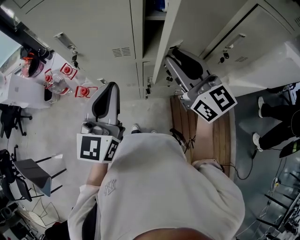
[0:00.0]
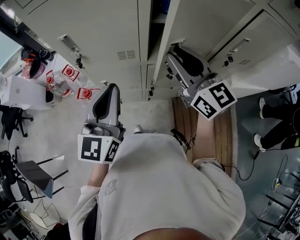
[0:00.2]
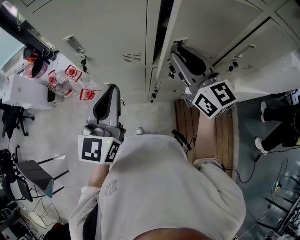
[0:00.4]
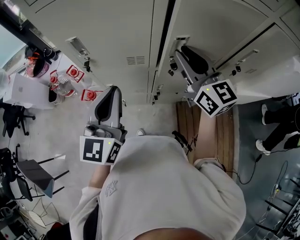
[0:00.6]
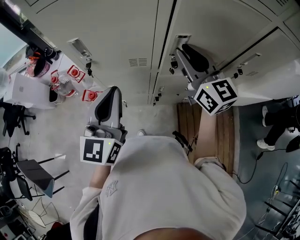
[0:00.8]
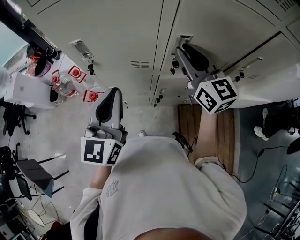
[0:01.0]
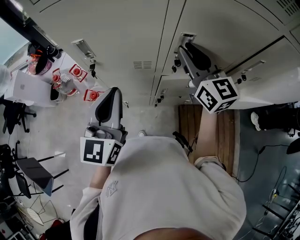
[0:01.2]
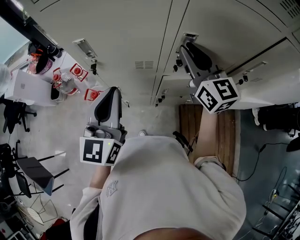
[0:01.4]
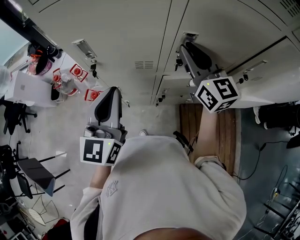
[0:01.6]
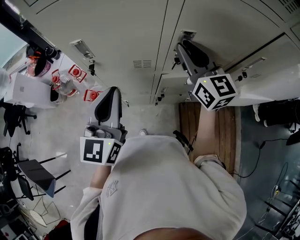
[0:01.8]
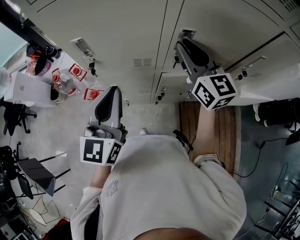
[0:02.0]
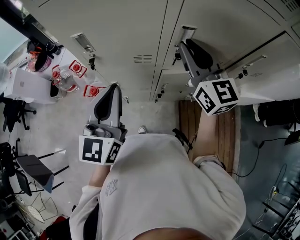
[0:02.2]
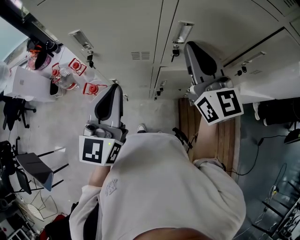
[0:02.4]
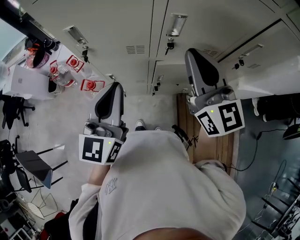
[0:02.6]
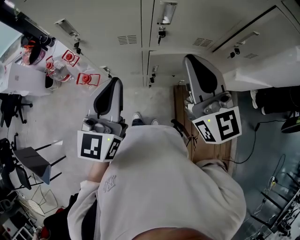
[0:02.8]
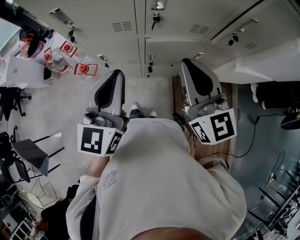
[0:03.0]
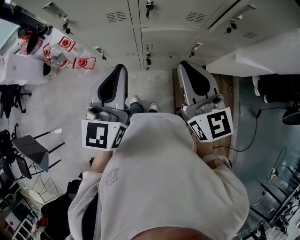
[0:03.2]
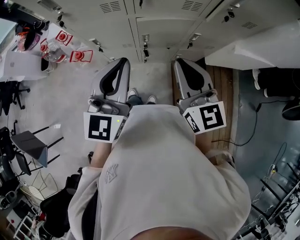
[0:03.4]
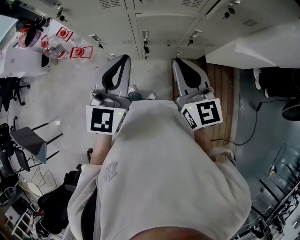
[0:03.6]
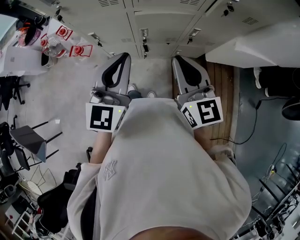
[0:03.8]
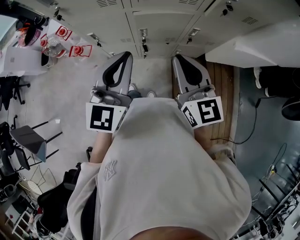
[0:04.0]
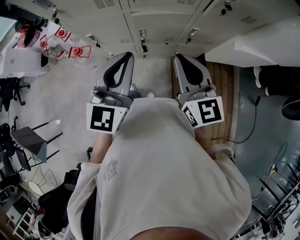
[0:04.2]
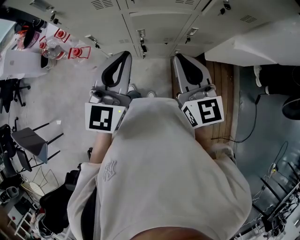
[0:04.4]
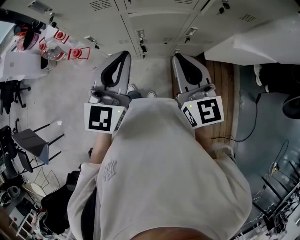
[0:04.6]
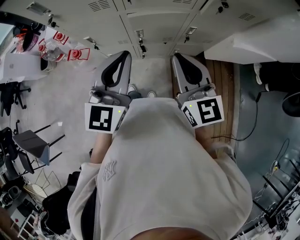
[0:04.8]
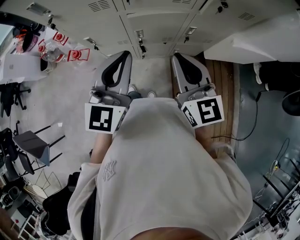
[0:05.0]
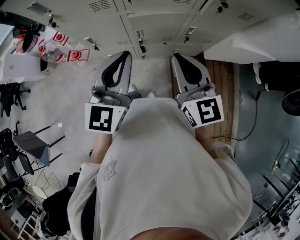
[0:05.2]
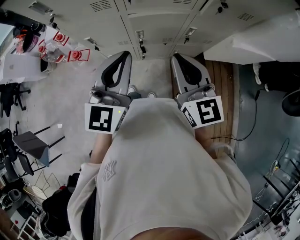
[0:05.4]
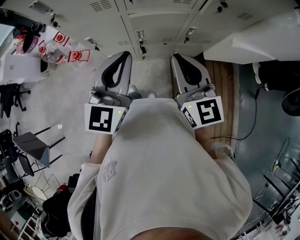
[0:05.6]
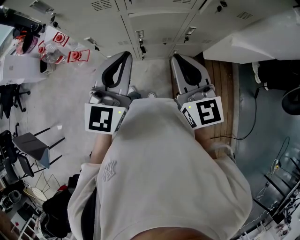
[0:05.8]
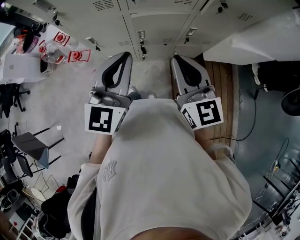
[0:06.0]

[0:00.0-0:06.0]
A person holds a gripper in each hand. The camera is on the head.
0:00.0 to 0:01.6: The left gripper is displaced to the left and forward by roughly 10 cm. Meanwhile the right gripper is displaced forward by about 10 cm.
0:01.6 to 0:03.0: The right gripper travels backward by about 20 cm. Meanwhile the left gripper travels backward and to the right by roughly 10 cm.
0:03.0 to 0:04.4: The right gripper travels downward, to the right and backward by roughly 15 cm. Meanwhile the left gripper moves to the right and downward, about 10 cm.
0:04.4 to 0:06.0: The grippers stay close to where they were, moving slightly.

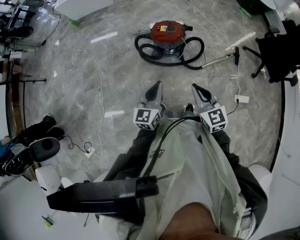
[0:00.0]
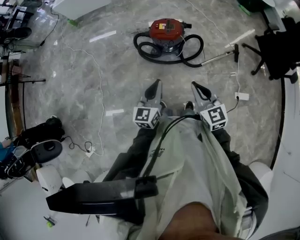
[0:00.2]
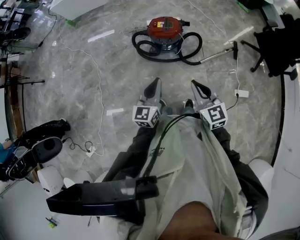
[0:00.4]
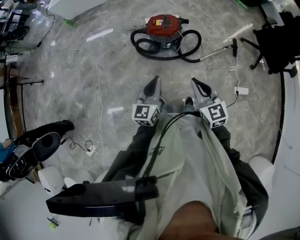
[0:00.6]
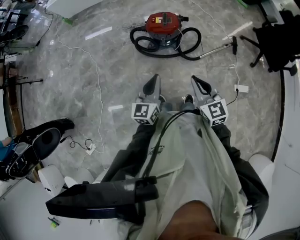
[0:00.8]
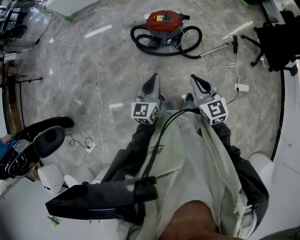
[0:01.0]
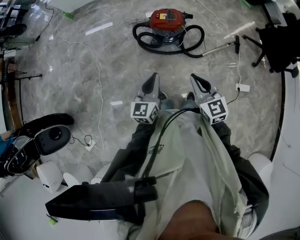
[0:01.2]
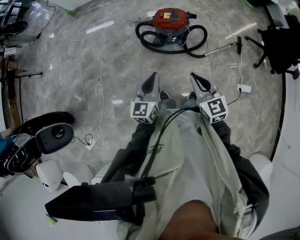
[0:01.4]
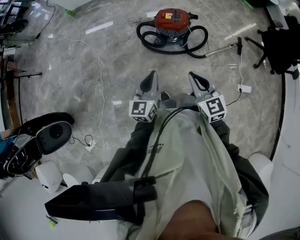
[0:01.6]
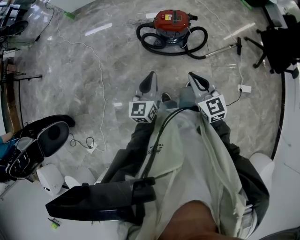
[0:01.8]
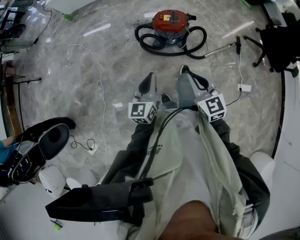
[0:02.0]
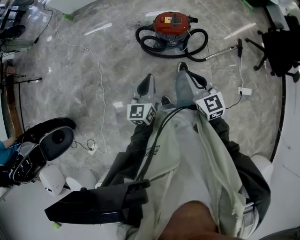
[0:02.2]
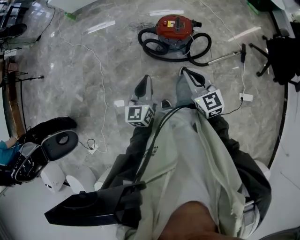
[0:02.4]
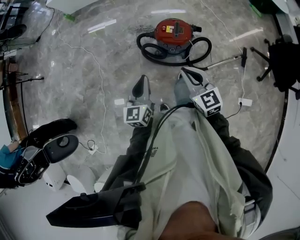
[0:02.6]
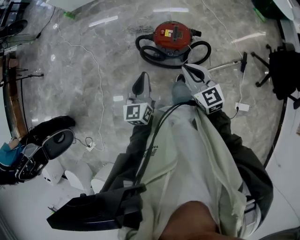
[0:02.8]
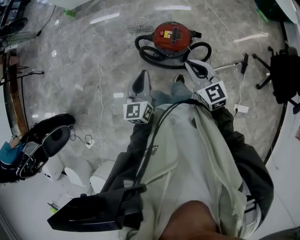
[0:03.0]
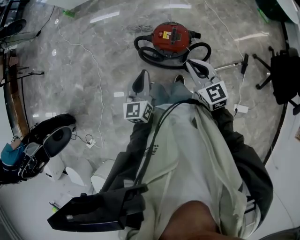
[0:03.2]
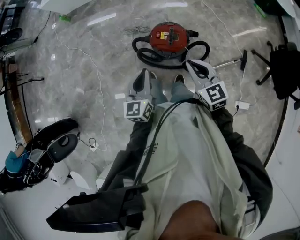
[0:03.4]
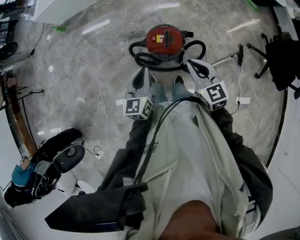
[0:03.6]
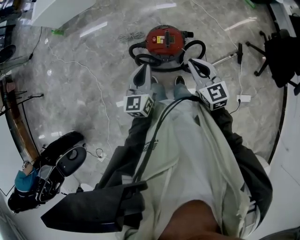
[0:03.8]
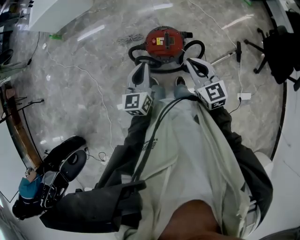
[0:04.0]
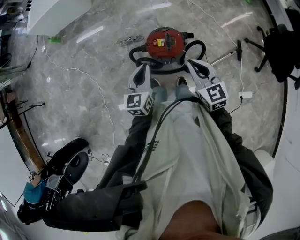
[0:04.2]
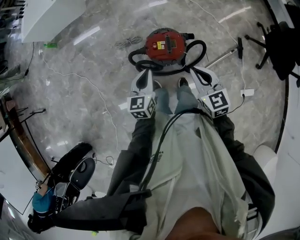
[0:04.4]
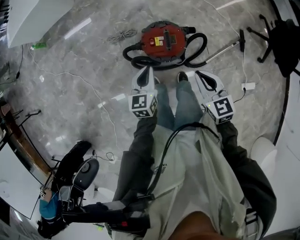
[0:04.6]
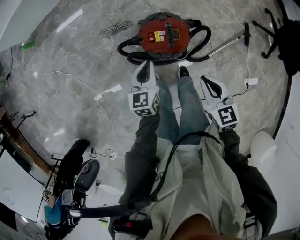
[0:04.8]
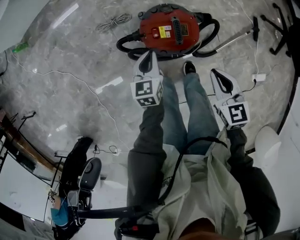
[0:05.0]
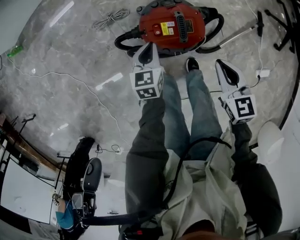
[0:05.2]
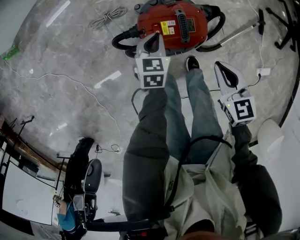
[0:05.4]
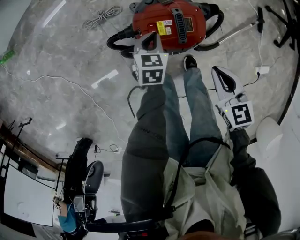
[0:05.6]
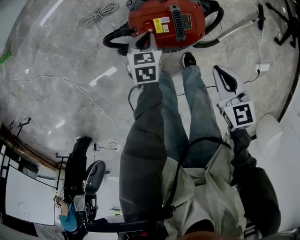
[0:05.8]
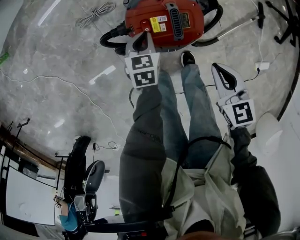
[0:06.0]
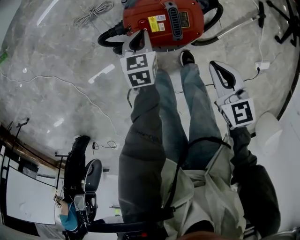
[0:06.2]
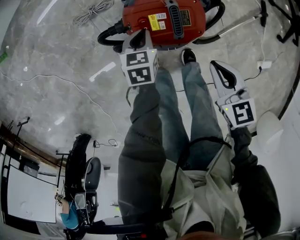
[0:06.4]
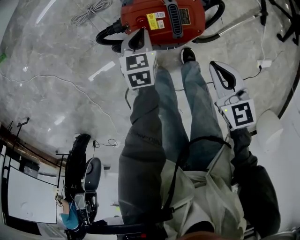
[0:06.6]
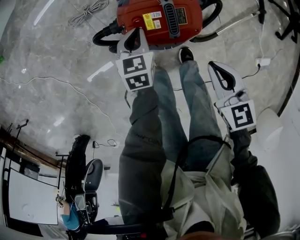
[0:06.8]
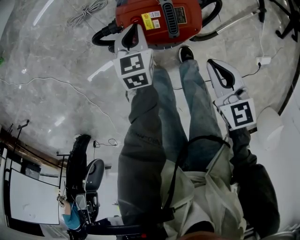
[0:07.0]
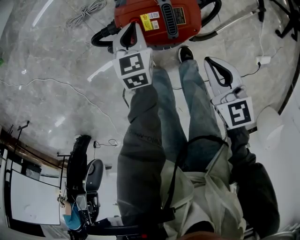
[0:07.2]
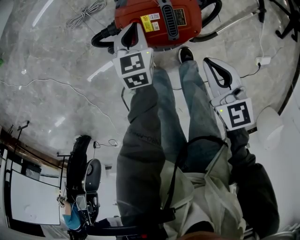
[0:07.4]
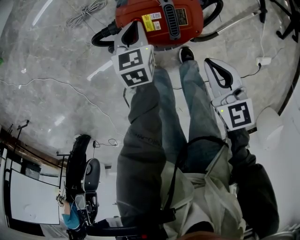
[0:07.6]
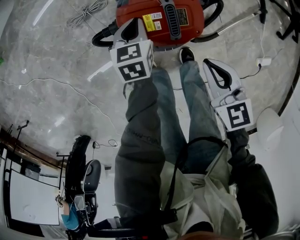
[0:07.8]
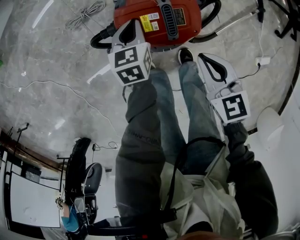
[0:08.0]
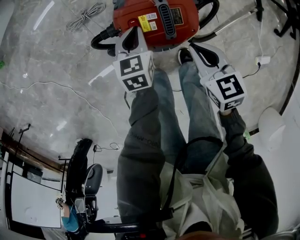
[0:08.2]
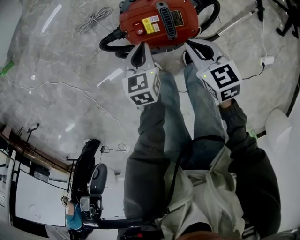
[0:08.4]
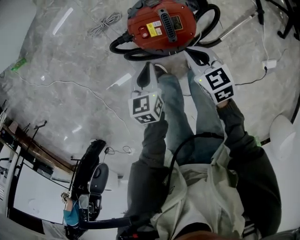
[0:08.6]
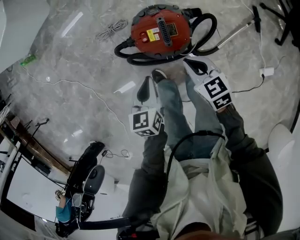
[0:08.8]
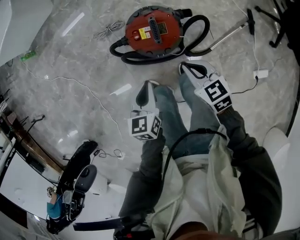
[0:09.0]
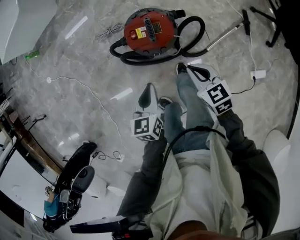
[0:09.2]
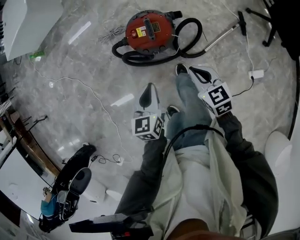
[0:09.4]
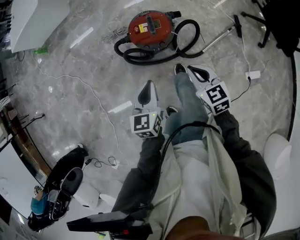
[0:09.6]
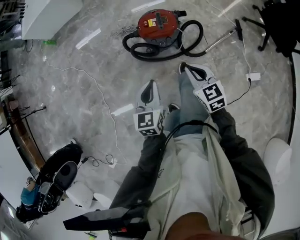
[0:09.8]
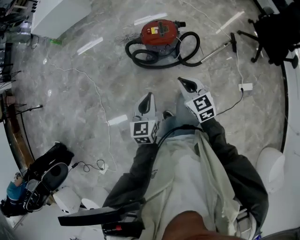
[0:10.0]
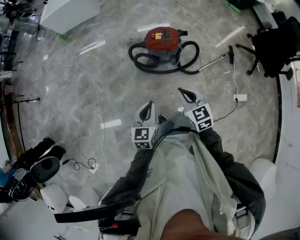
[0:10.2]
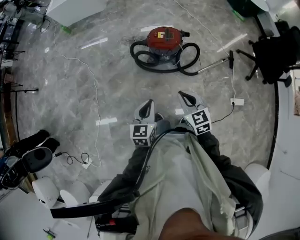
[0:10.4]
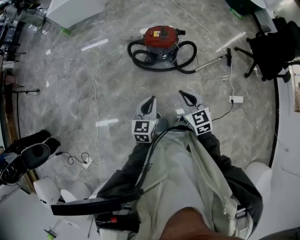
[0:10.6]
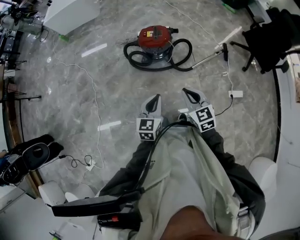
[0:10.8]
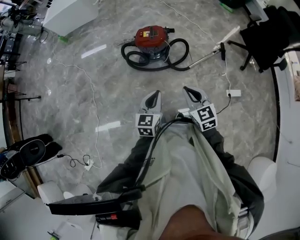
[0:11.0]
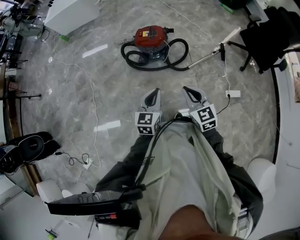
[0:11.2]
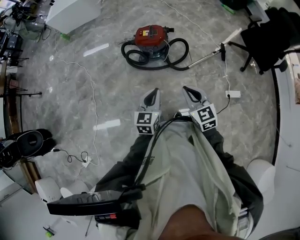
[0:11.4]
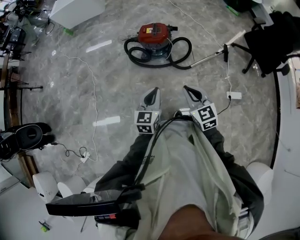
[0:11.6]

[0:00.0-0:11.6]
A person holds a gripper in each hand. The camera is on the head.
0:00.0 to 0:01.4: Both grippers move to the left, approximately 5 cm.
0:01.4 to 0:02.8: The grippers both shift forward by approximately 25 cm.
0:02.8 to 0:04.4: The left gripper goes roughly 20 cm forward and downward, and rotates roughly 20 degrees; the right gripper shifts approximately 10 cm forward and to the right, and rotates approximately 20 degrees.
0:04.4 to 0:05.8: Both grippers move downward, approximately 35 cm. The right gripper turns by about 20 degrees, while the left gripper changes its angle by about 30 degrees.
0:05.8 to 0:07.2: The grippers make only small movements.
0:07.2 to 0:08.8: The left gripper shifts approximately 25 cm upward and backward.
0:08.8 to 0:10.2: The two grippers go about 40 cm backward and upward. The right gripper swivels about 20 degrees.
0:10.2 to 0:11.6: The two grippers go approximately 20 cm to the right and backward.

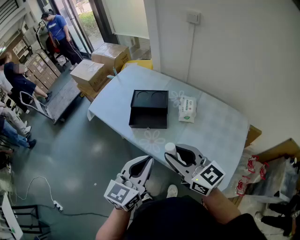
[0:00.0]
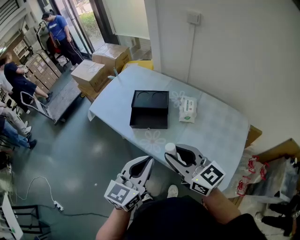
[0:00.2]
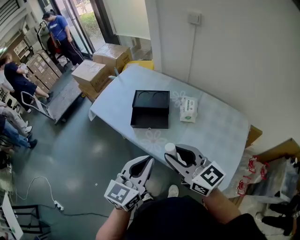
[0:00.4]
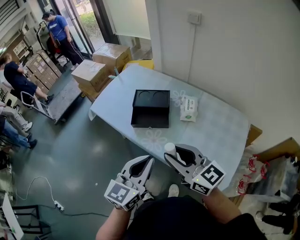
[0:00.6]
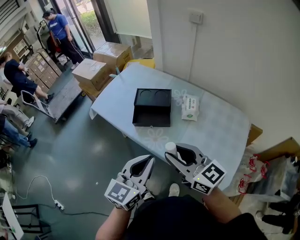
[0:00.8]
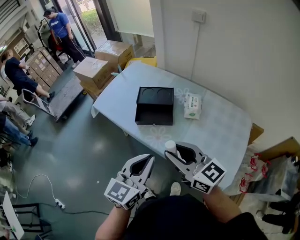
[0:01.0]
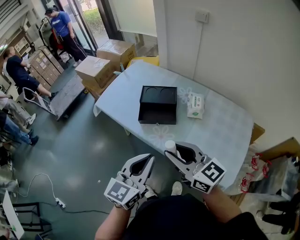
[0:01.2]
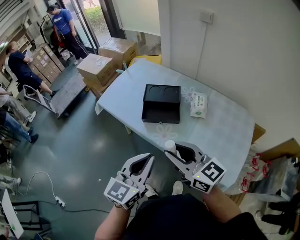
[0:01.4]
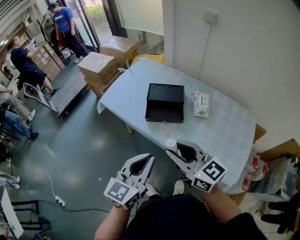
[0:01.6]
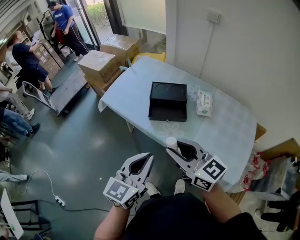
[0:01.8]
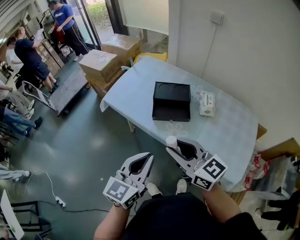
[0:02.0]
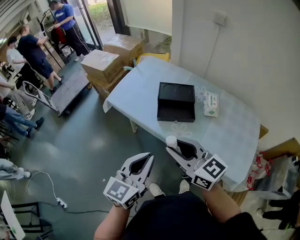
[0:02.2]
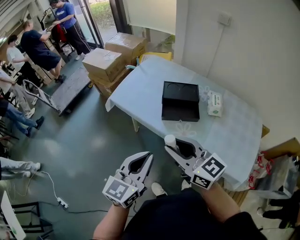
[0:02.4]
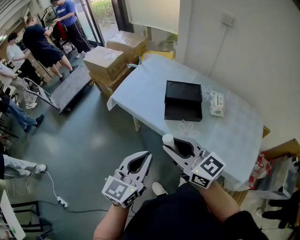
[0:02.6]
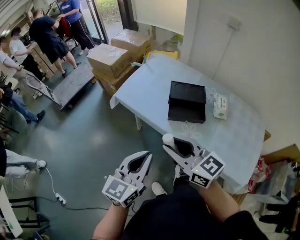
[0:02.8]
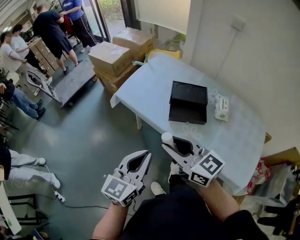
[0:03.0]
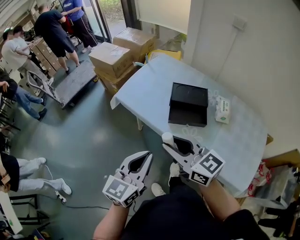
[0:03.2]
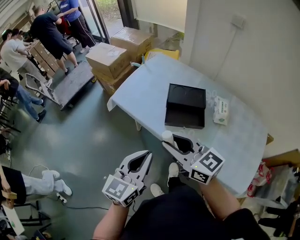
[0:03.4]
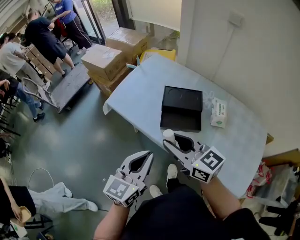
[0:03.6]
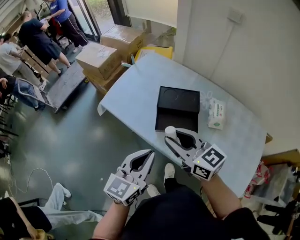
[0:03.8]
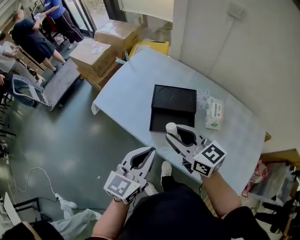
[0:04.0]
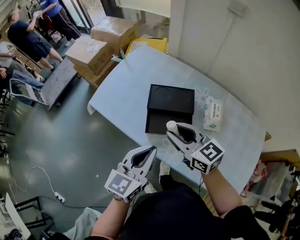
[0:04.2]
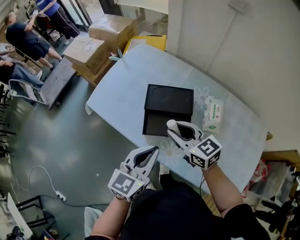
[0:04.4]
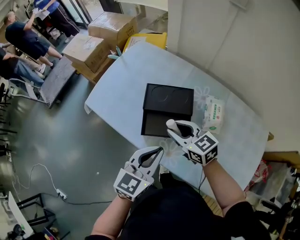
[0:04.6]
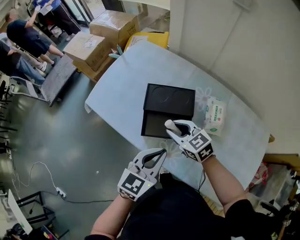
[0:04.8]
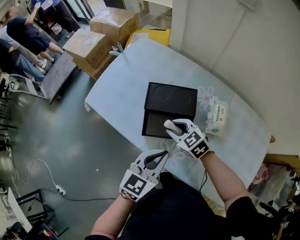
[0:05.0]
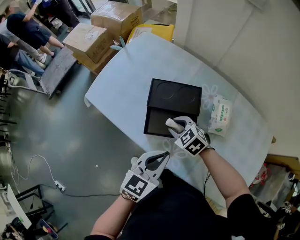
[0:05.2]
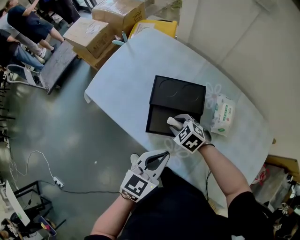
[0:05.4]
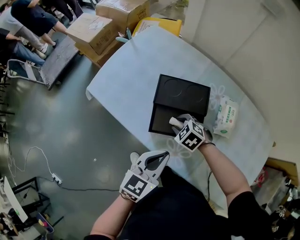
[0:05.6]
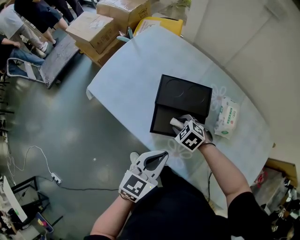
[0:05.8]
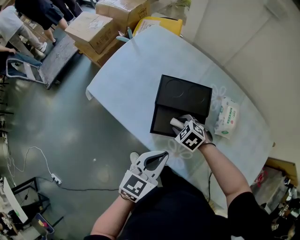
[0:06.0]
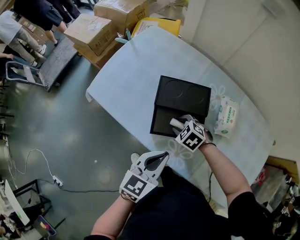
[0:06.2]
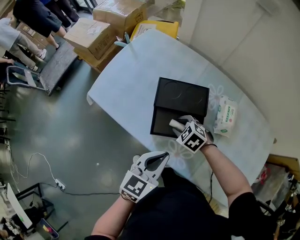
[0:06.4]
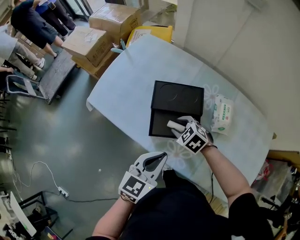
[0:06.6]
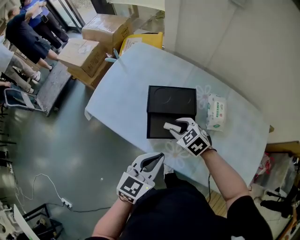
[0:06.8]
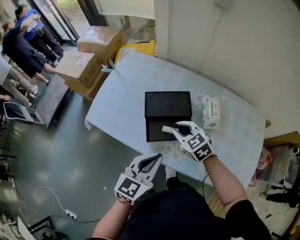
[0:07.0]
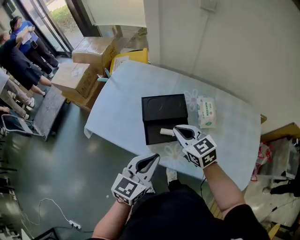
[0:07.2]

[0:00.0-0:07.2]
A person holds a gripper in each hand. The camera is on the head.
0:00.0 to 0:01.4: Both grippers move to the left, approximately 5 cm.
0:01.4 to 0:02.8: Both grippers travel together to the left, approximately 15 cm.
0:02.8 to 0:04.4: The left gripper shifts approximately 25 cm to the right and forward. The right gripper moves forward, to the right and downward, roughly 30 cm.
0:04.4 to 0:05.8: The left gripper is displaced downward by approximately 10 cm. The right gripper moves downward, about 20 cm, and tips its fingers downward by roughly 50 degrees.
0:05.8 to 0:07.2: The left gripper moves upward, approximately 10 cm; the right gripper goes roughly 20 cm upward, angles its fingers upward, by some 40 degrees, and closes up.
